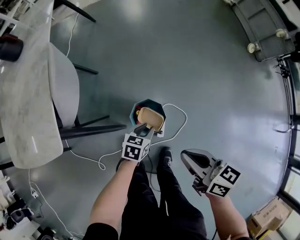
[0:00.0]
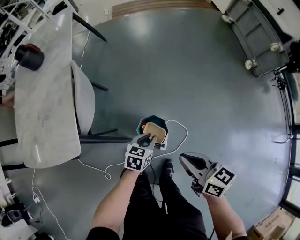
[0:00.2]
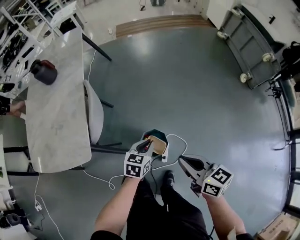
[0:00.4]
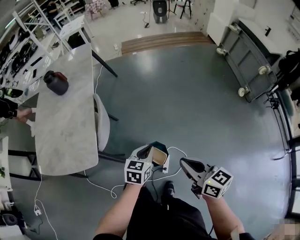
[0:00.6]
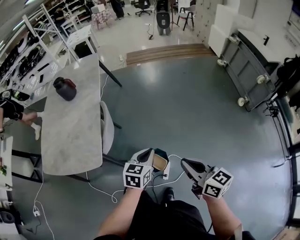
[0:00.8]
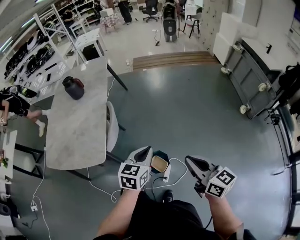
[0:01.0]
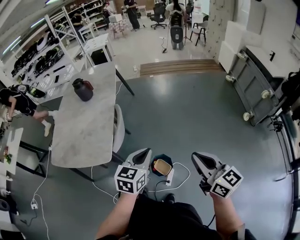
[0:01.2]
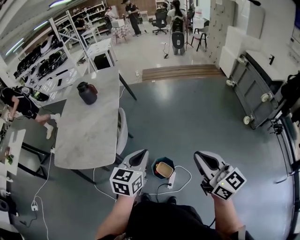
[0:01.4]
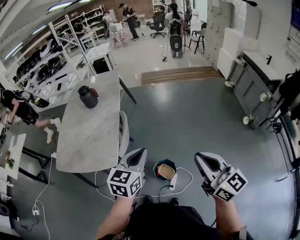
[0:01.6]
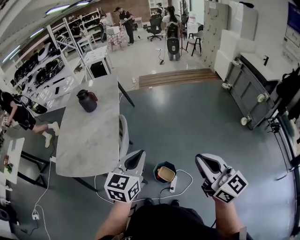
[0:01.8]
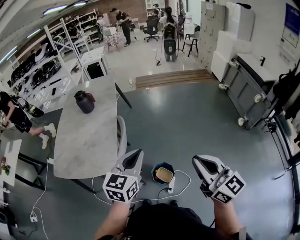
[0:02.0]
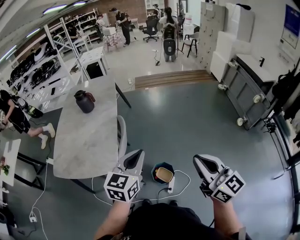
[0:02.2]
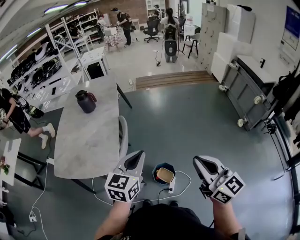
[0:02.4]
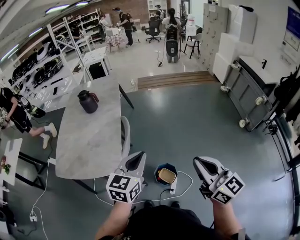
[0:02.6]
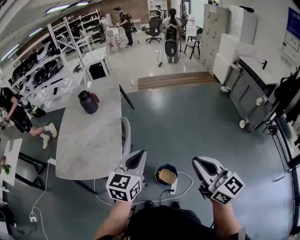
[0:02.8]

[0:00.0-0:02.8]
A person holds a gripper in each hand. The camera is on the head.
0:00.0 to 0:01.4: The two grippers go approximately 50 cm upward. The right gripper turns by roughly 40 degrees. Meanwhile the left gripper swivels roughly 40 degrees, and closes.
0:01.4 to 0:02.8: The right gripper heads to the left, covering some 10 cm, while the left gripper shifts about 10 cm to the left and upward.

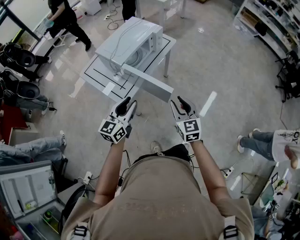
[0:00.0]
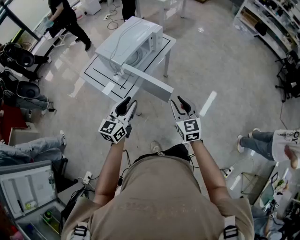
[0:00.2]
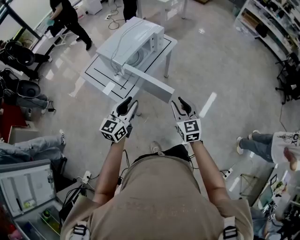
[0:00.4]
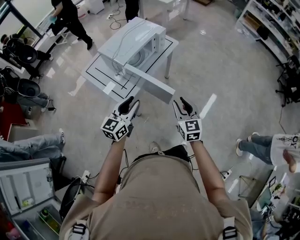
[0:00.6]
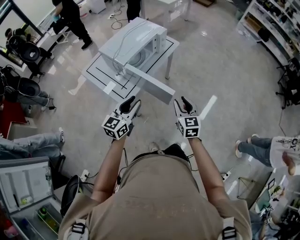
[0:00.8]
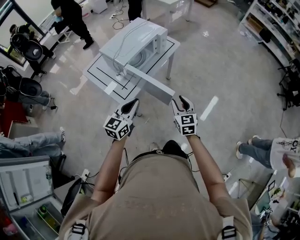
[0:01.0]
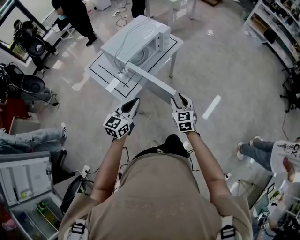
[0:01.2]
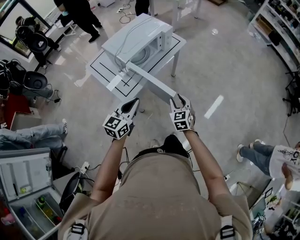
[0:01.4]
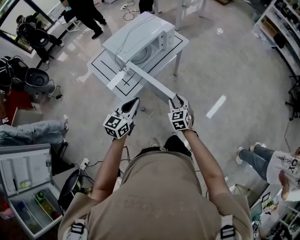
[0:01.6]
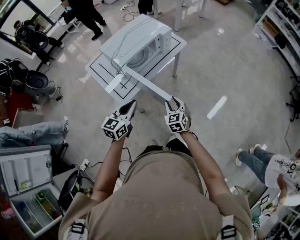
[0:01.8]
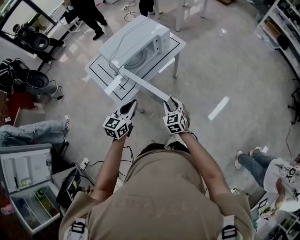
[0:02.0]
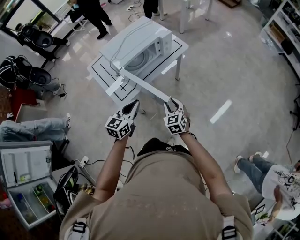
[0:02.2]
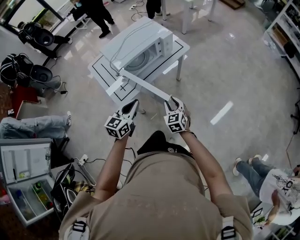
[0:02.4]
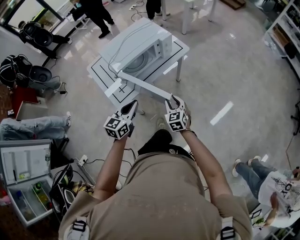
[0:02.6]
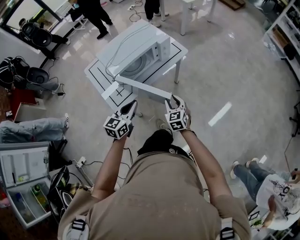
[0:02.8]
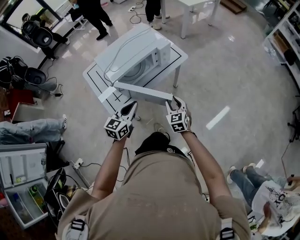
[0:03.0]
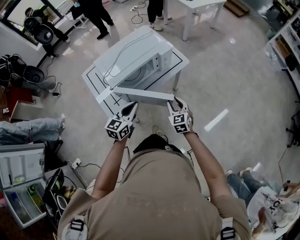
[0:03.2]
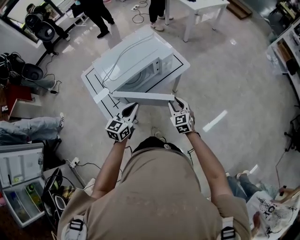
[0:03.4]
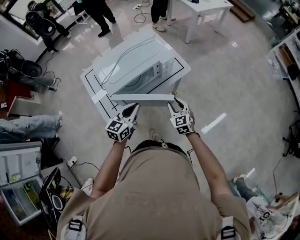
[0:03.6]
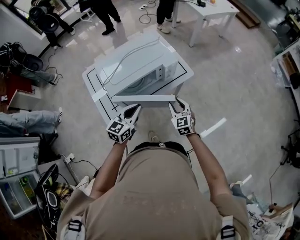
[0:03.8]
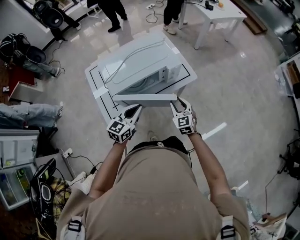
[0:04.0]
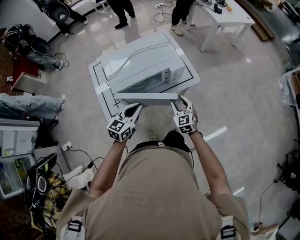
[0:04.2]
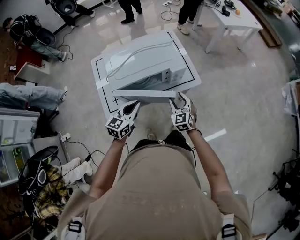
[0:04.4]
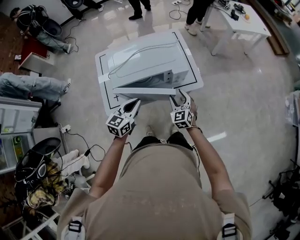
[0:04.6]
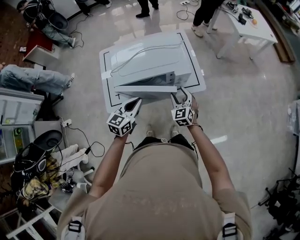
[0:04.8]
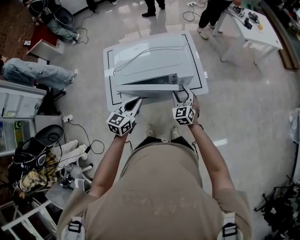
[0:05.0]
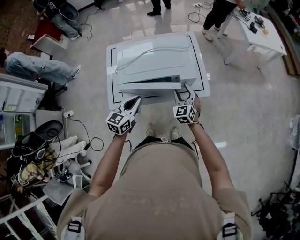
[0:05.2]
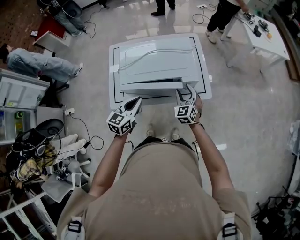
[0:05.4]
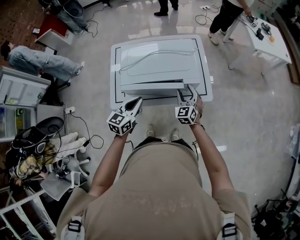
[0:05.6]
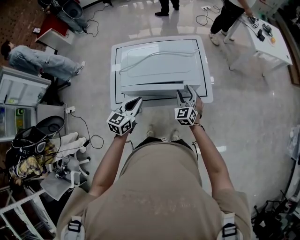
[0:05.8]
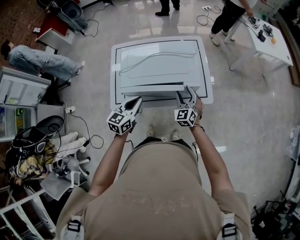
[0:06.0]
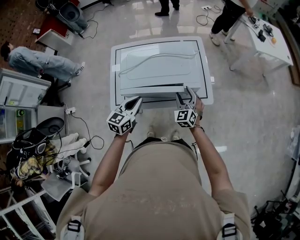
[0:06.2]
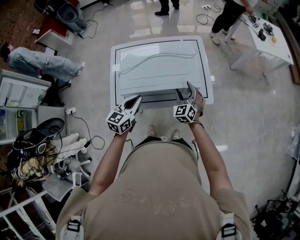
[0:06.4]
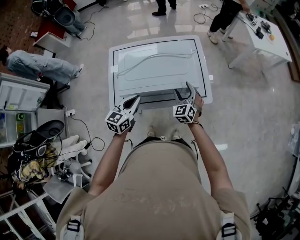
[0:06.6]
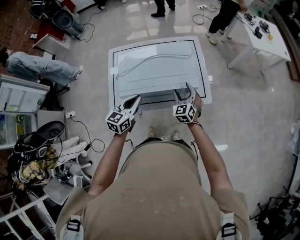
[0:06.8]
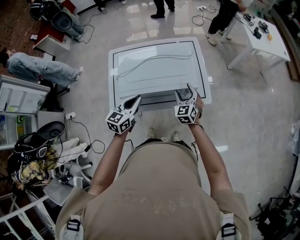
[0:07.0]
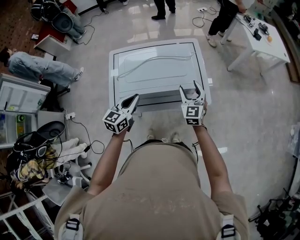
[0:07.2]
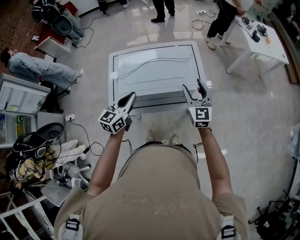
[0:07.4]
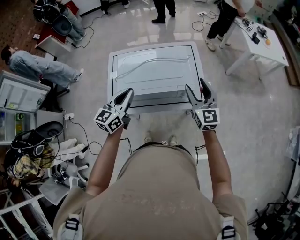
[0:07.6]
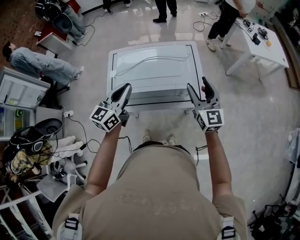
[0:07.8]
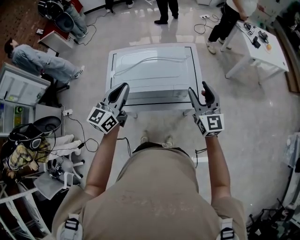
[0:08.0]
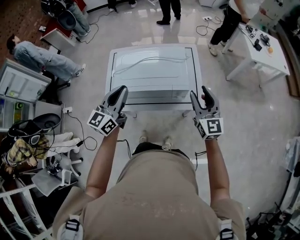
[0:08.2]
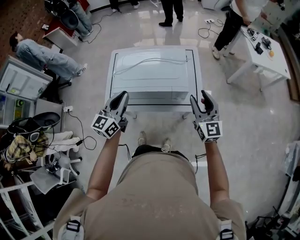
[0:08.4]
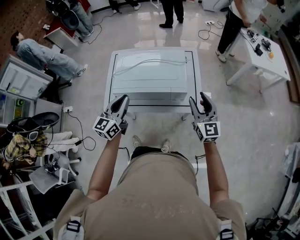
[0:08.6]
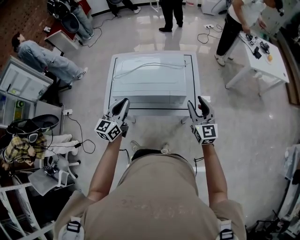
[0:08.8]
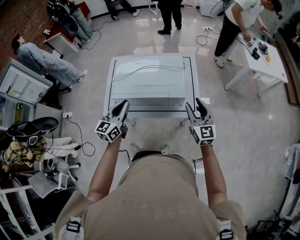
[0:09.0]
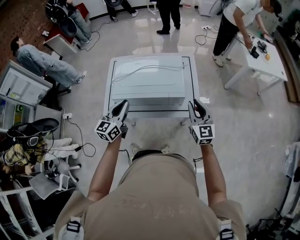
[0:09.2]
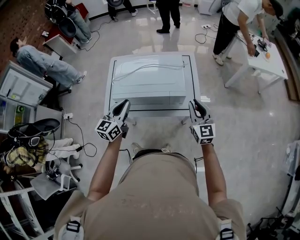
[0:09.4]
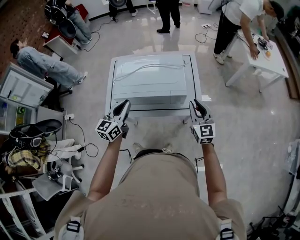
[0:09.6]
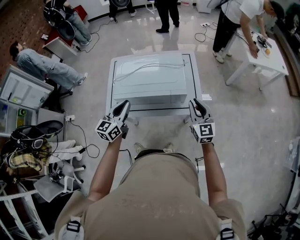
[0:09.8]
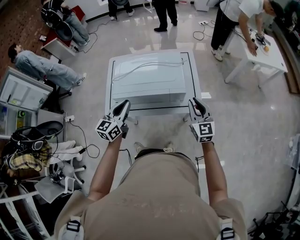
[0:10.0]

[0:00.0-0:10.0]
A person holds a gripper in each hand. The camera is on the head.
0:00.0 to 0:01.4: The left gripper closes up. Meanwhile the right gripper heads downward and forward, covering roughly 15 cm.
0:01.4 to 0:02.8: The left gripper shifts some 15 cm forward and to the right. The right gripper goes some 15 cm forward.
0:02.8 to 0:04.2: Both grippers travel together forward, roughly 20 cm. The right gripper rotates approximately 20 degrees.
0:04.2 to 0:05.8: The left gripper goes about 5 cm forward, and swivels approximately 20 degrees, while the right gripper shifts about 15 cm forward.
0:05.8 to 0:07.2: The right gripper heads upward, covering some 10 cm.
0:07.2 to 0:08.6: The left gripper moves upward, approximately 5 cm, while the right gripper heads to the right, upward and backward, covering roughly 15 cm, and changes its angle by approximately 20 degrees.
0:08.6 to 0:10.0: The right gripper closes its fingers.

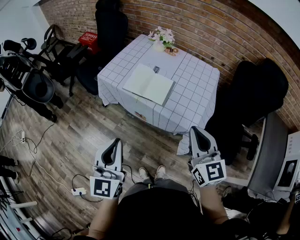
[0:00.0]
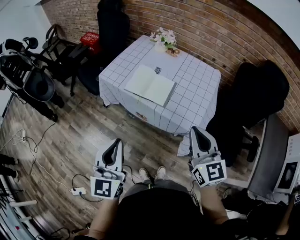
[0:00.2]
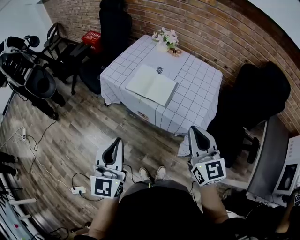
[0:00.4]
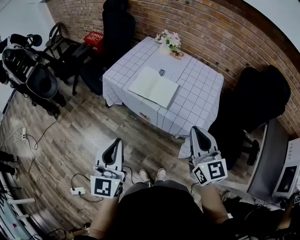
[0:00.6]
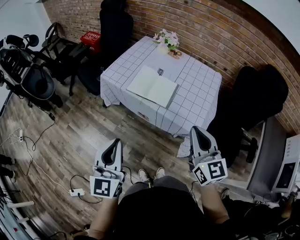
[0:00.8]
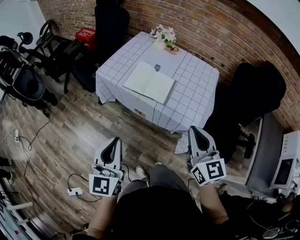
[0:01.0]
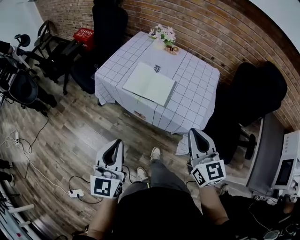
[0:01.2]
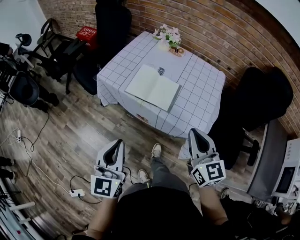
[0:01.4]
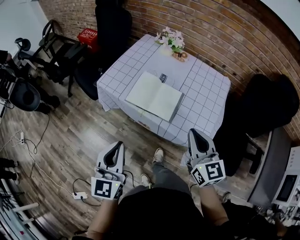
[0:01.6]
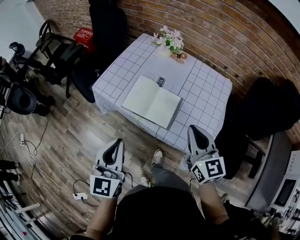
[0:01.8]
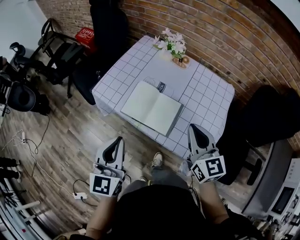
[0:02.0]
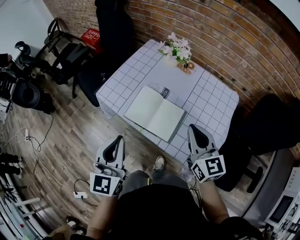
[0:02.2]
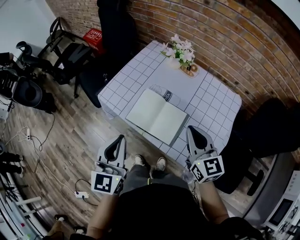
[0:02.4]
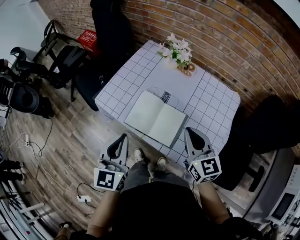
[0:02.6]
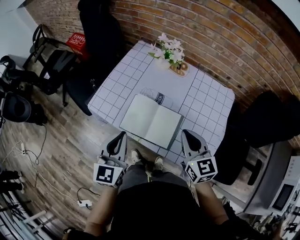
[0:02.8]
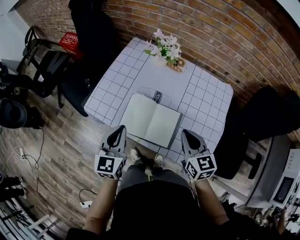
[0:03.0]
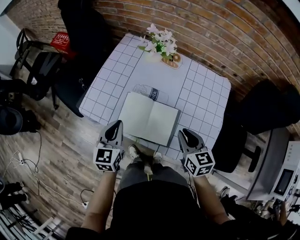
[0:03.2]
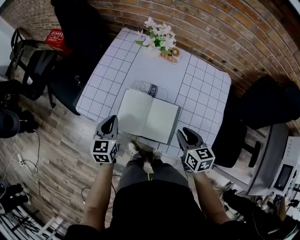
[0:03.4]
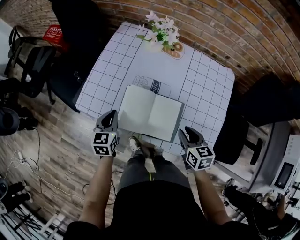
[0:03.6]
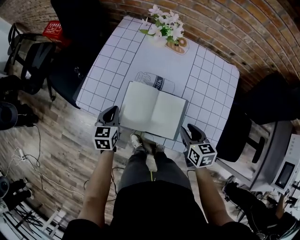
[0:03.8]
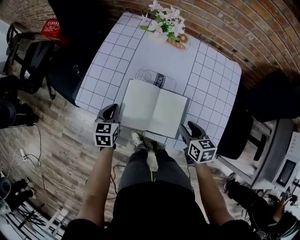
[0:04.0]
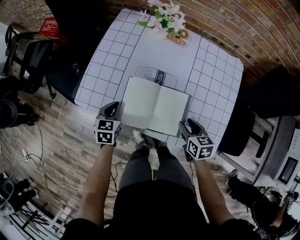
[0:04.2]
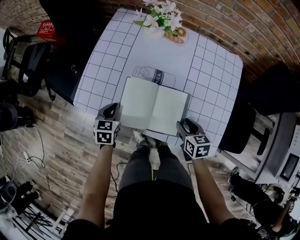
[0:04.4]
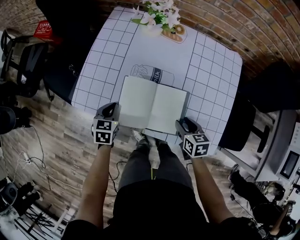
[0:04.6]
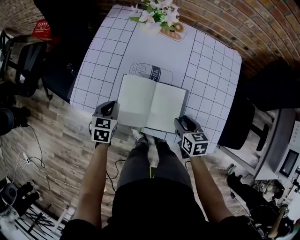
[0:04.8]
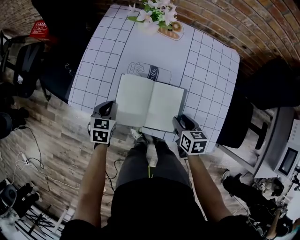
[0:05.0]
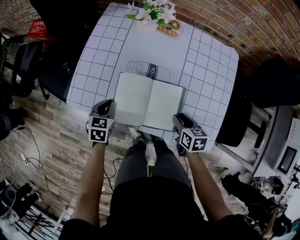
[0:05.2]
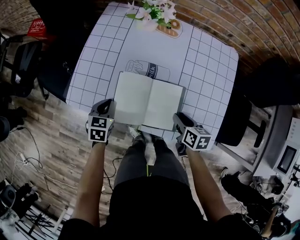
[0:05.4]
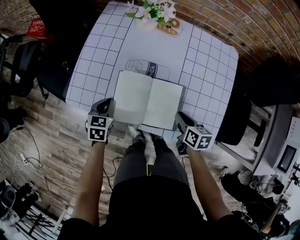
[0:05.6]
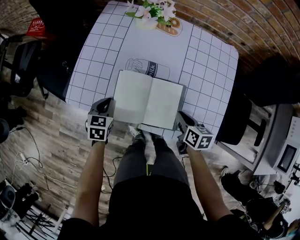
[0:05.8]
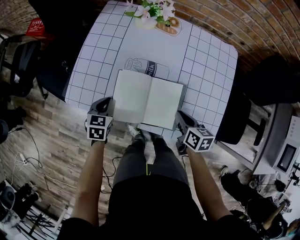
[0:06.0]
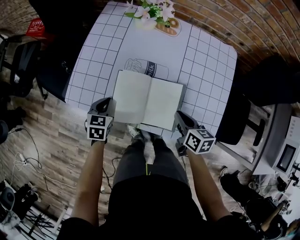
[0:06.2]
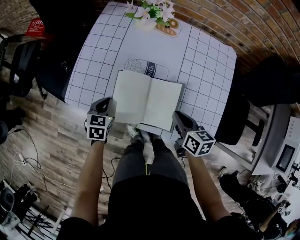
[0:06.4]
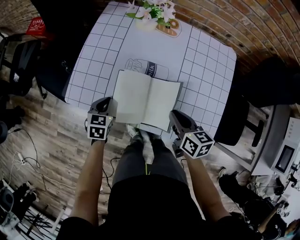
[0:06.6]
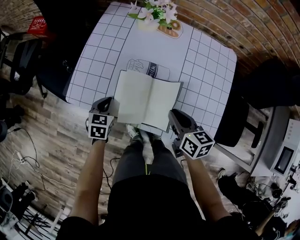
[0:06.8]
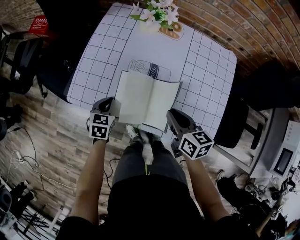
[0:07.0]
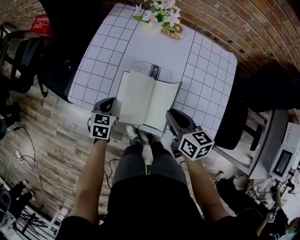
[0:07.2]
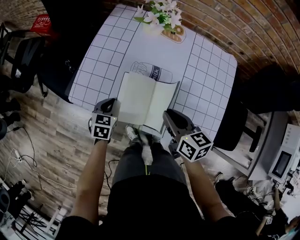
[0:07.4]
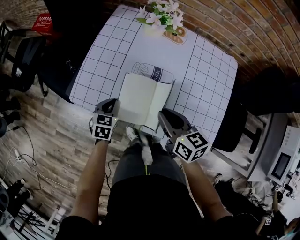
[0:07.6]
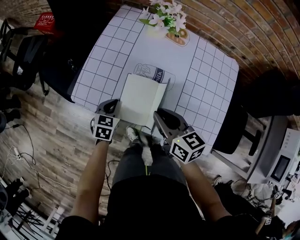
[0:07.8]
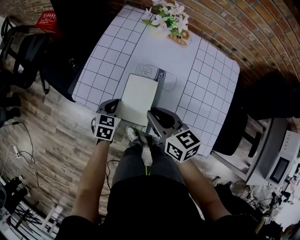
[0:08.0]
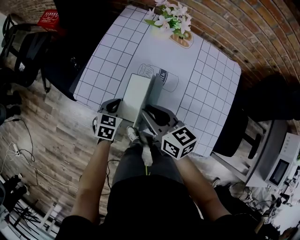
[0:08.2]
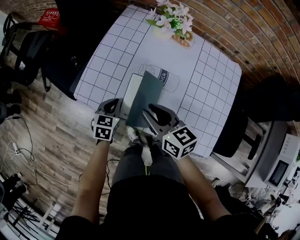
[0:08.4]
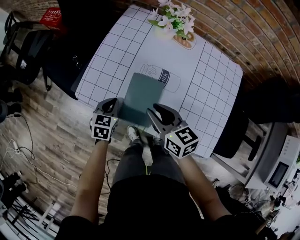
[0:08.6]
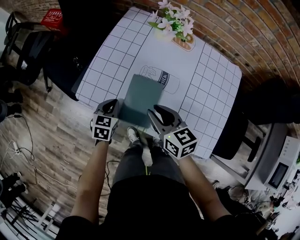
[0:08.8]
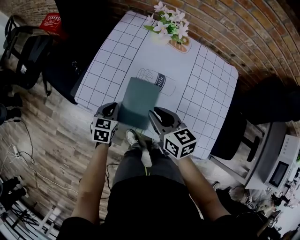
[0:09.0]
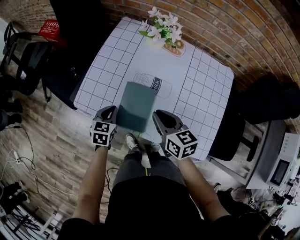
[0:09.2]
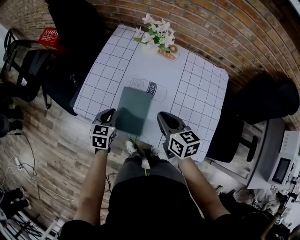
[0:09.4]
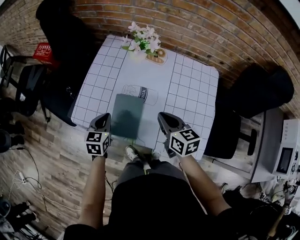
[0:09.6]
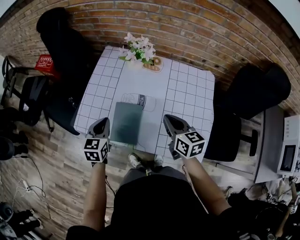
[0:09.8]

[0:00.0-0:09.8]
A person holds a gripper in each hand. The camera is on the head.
0:00.0 to 0:01.4: Both grippers move forward, roughly 5 cm.
0:01.4 to 0:02.8: The grippers both shift forward by approximately 25 cm.
0:02.8 to 0:04.2: The right gripper heads downward, covering some 20 cm, angles its fingers downward, by some 30 degrees, and opens. Meanwhile the left gripper travels downward and forward by about 25 cm, and tips its fingers downward by approximately 30 degrees.
0:04.2 to 0:05.6: The right gripper closes its fingers.
0:05.6 to 0:07.0: The right gripper shifts about 10 cm upward and to the left.
0:07.0 to 0:08.4: The right gripper heads to the left, covering some 15 cm.
0:08.4 to 0:09.8: The left gripper heads upward, covering roughly 15 cm. The right gripper goes roughly 15 cm to the right, and closes up.

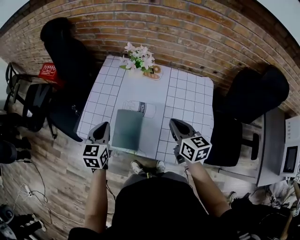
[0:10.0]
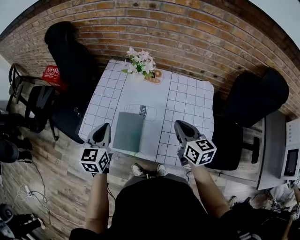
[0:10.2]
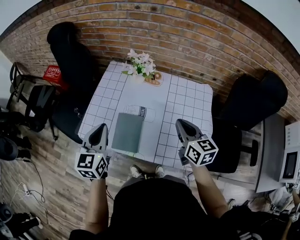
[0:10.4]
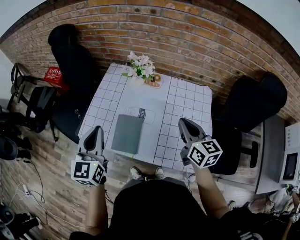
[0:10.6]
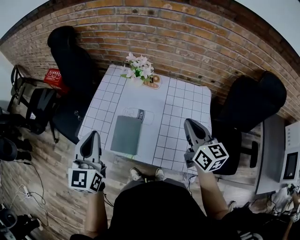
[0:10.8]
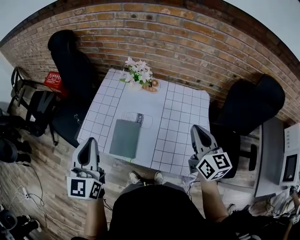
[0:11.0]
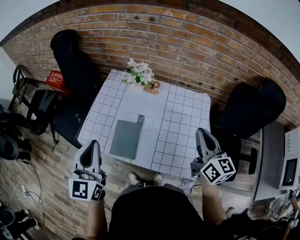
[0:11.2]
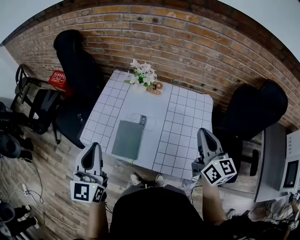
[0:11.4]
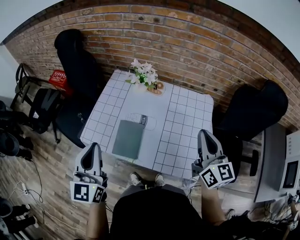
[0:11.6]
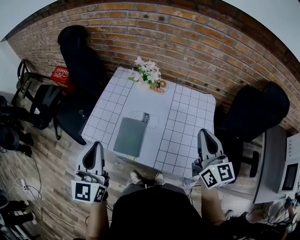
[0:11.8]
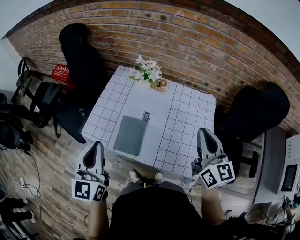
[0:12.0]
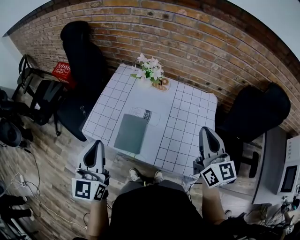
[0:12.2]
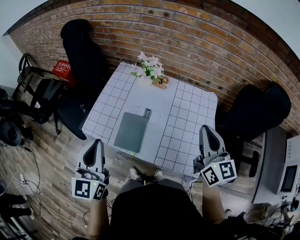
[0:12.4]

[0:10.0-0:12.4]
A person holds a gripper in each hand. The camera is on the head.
0:10.0 to 0:11.2: The right gripper travels upward and to the right by roughly 15 cm, and turns by roughly 20 degrees. Meanwhile the left gripper is displaced upward and backward by approximately 20 cm, and rotates about 30 degrees.
0:11.2 to 0:12.4: The grippers make only small movements.
